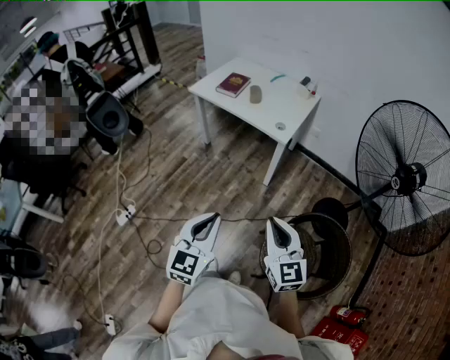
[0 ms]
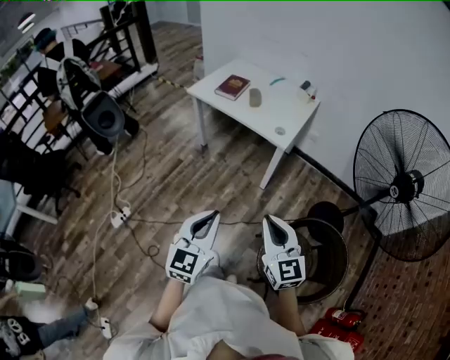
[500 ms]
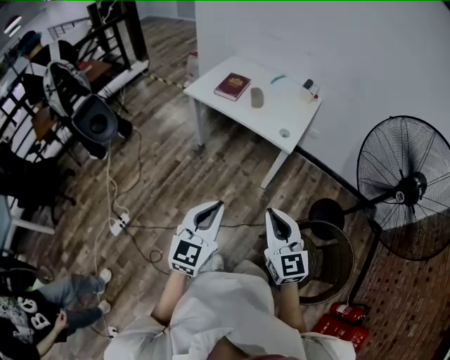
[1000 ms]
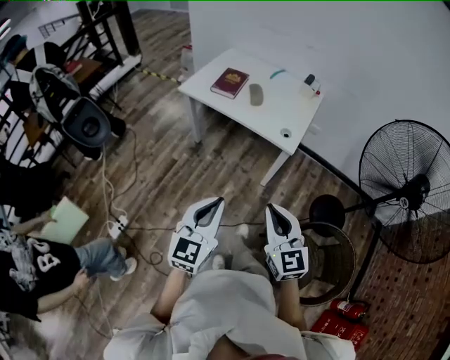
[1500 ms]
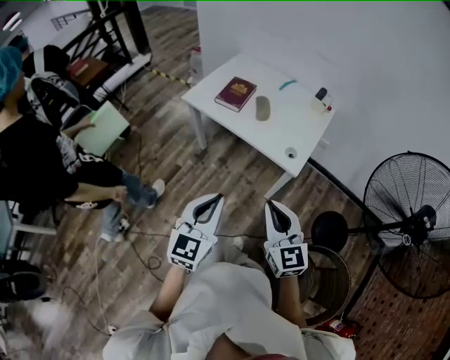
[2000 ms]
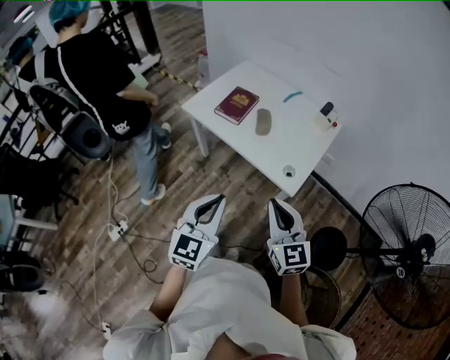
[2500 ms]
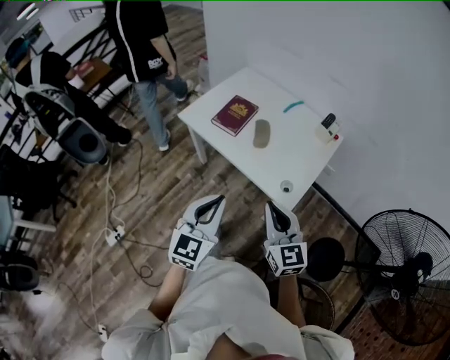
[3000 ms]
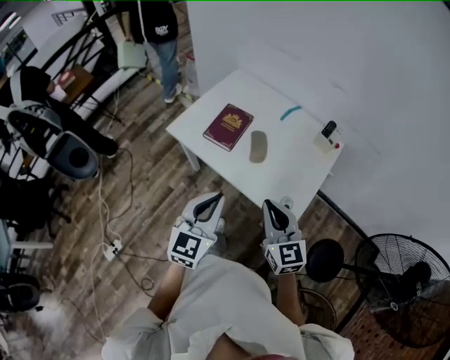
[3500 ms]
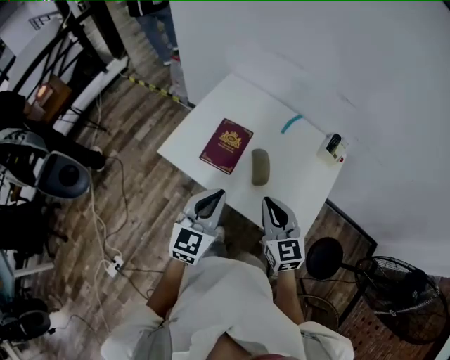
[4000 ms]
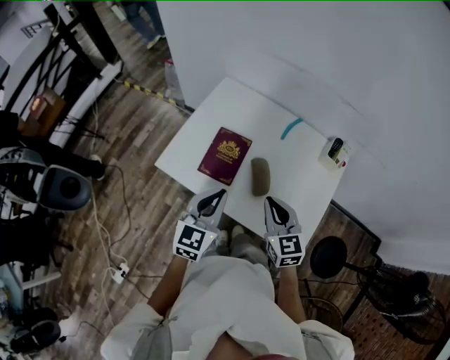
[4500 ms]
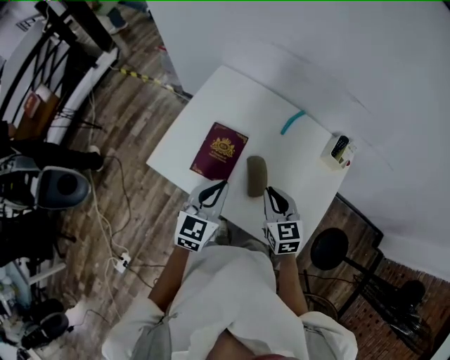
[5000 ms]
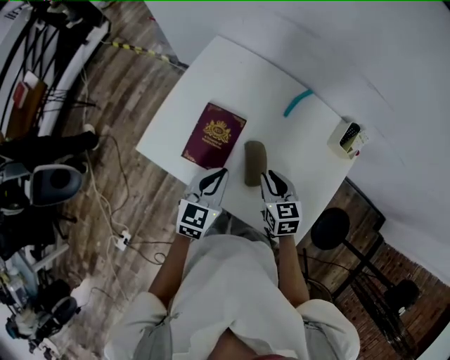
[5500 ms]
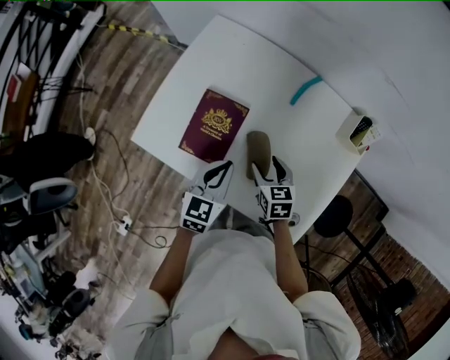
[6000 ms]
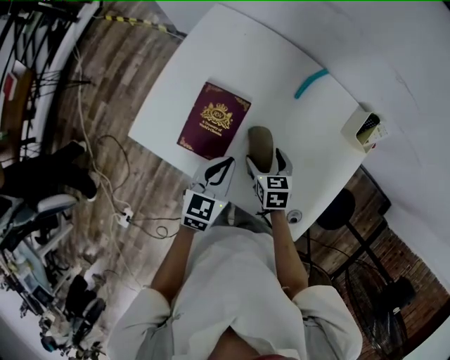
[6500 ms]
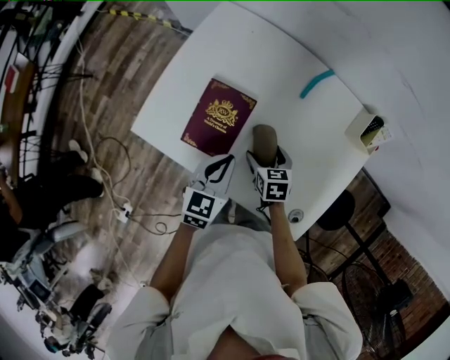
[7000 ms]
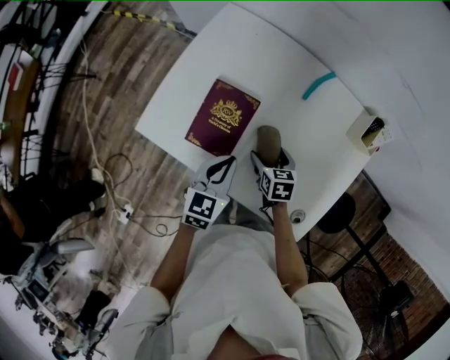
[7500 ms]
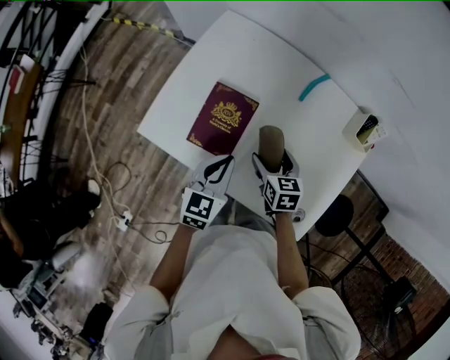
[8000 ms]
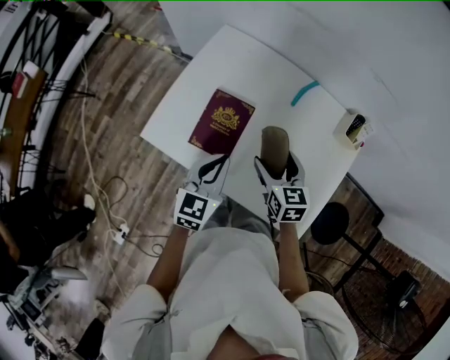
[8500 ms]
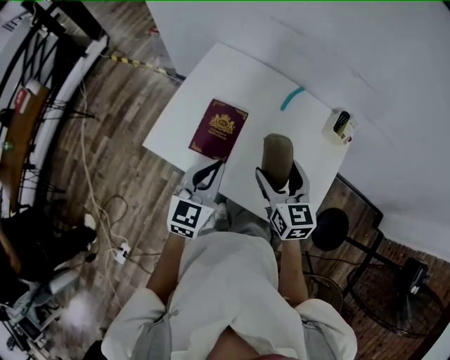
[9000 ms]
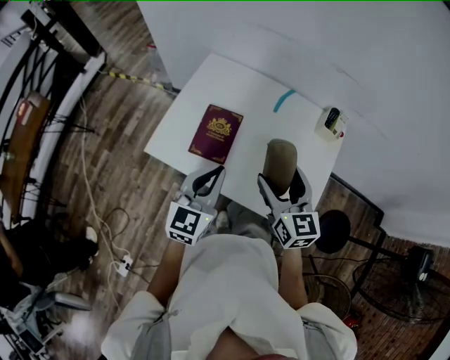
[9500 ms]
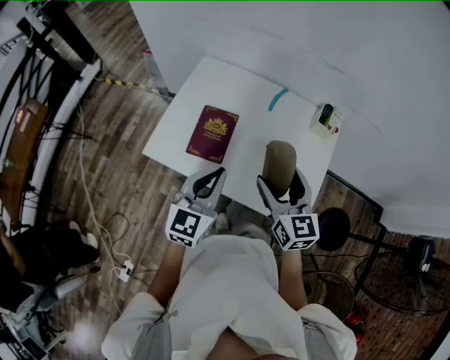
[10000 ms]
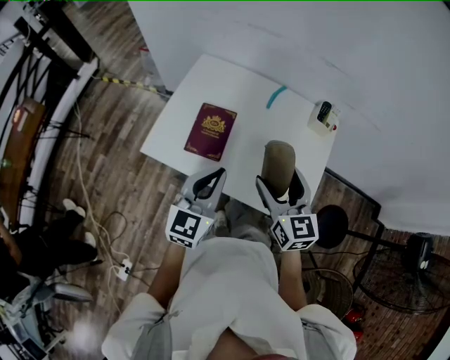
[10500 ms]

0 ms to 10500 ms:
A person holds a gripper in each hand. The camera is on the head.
0 ms to 2000 ms: The grippers both shift forward by some 30 cm.
2000 ms to 4000 ms: Both grippers travel together forward, about 40 cm.
4000 ms to 6500 ms: The grippers both shift downward and forward by roughly 30 cm. The left gripper swivels about 30 degrees, while the right gripper angles its fingers downward, by some 40 degrees, and opens.
6500 ms to 8500 ms: The left gripper is displaced upward by roughly 5 cm; the right gripper moves upward, some 15 cm.
8500 ms to 10500 ms: Both grippers move upward and backward, roughly 15 cm. The right gripper turns by roughly 20 degrees.

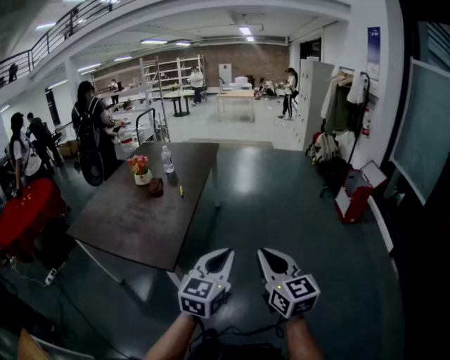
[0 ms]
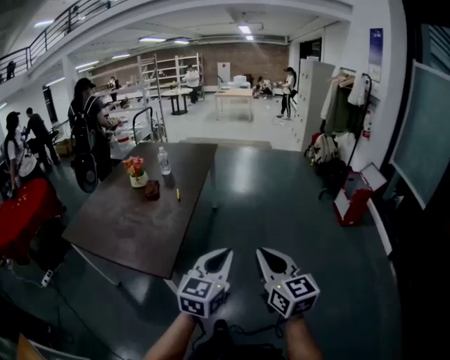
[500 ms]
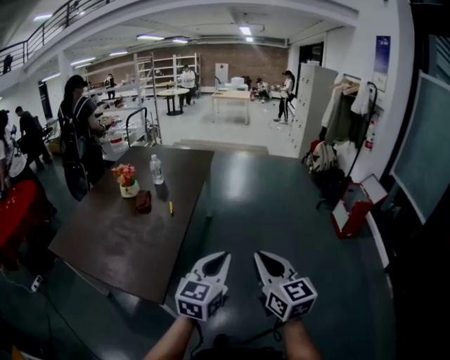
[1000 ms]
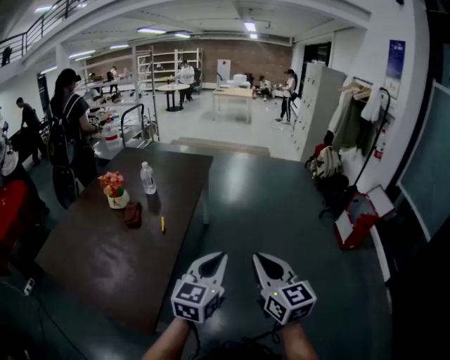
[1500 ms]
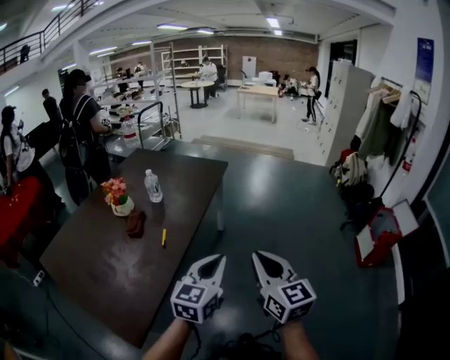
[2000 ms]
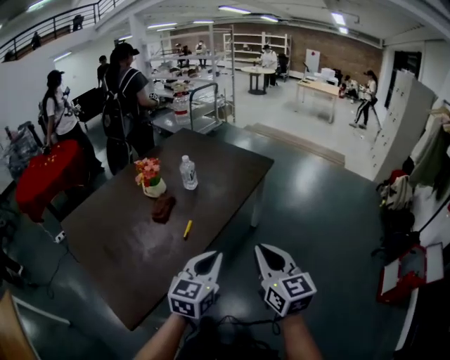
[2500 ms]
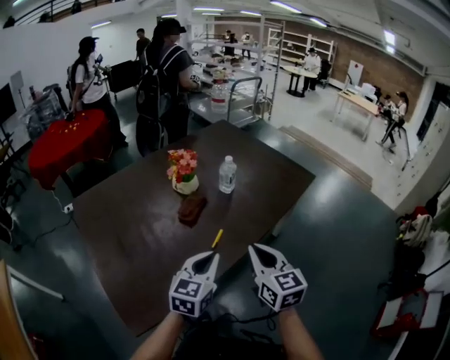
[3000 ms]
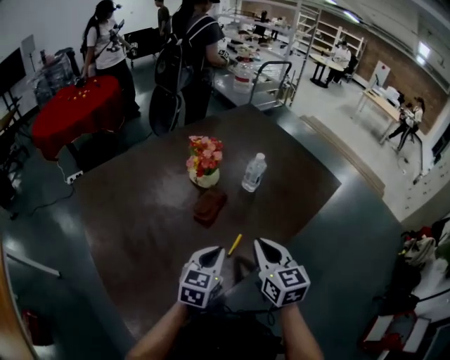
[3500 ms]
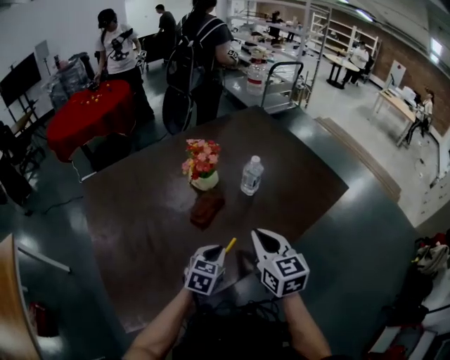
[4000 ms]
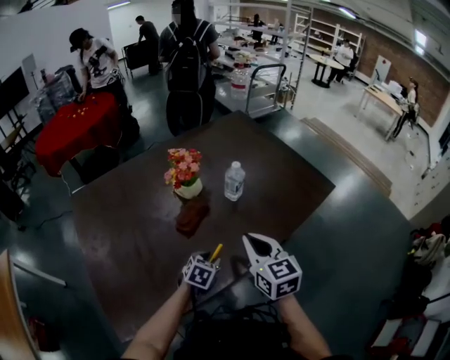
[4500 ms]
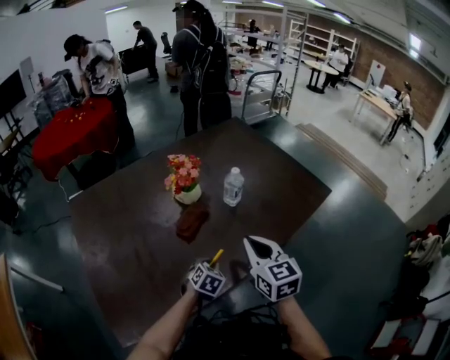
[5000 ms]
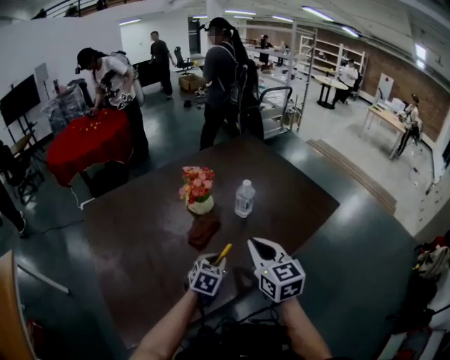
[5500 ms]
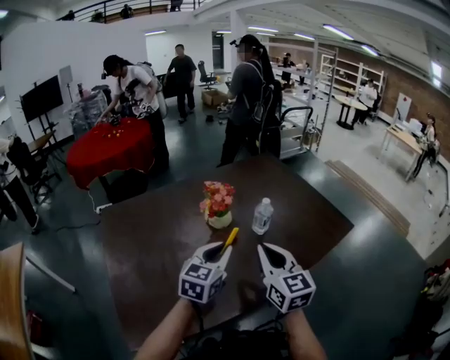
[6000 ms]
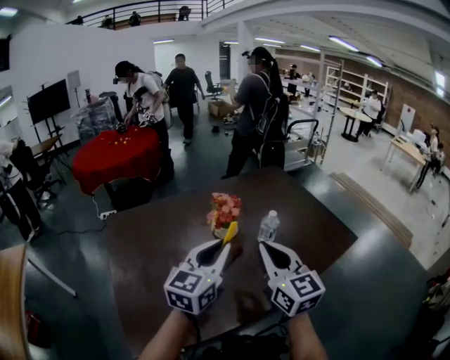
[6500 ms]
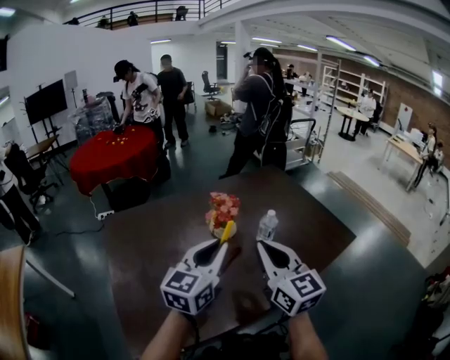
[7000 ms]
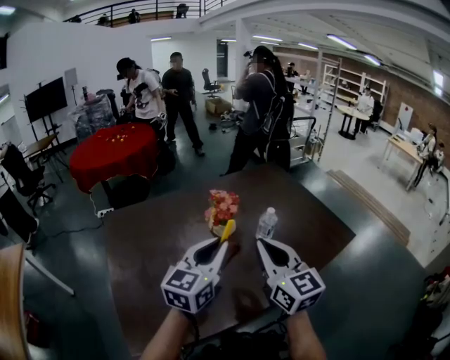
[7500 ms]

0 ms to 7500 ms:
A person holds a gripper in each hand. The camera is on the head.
0 ms to 2000 ms: Both grippers are carried forward, about 40 cm.
2000 ms to 4000 ms: The right gripper changes place by about 40 cm, and swivels about 40 degrees; the left gripper moves some 40 cm, and changes its angle by roughly 50 degrees.
4000 ms to 5500 ms: The left gripper goes downward and returns, about 10 cm each way, and opens, then closes again.
5500 ms to 7500 ms: The right gripper heads upward and to the left, covering some 10 cm. Meanwhile the left gripper moves upward, roughly 25 cm, and tilts its fingers about 40 degrees upward.

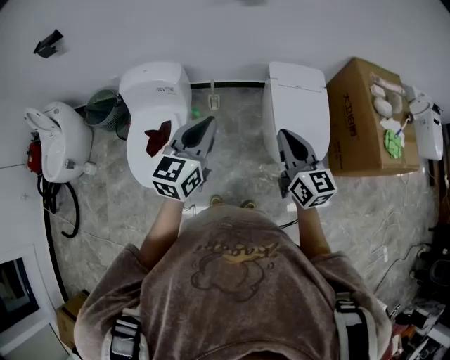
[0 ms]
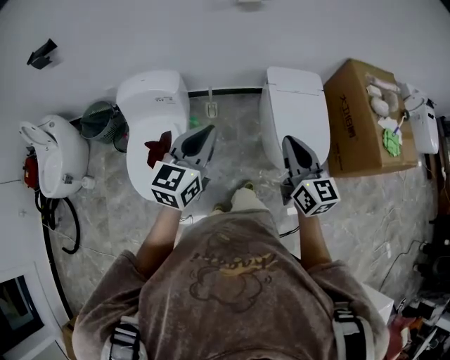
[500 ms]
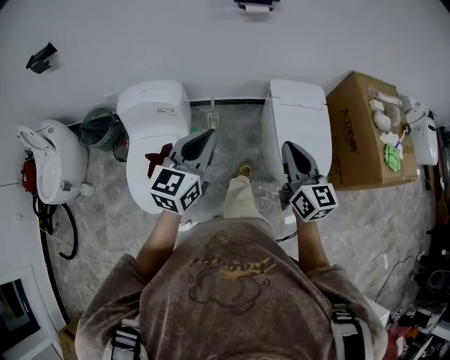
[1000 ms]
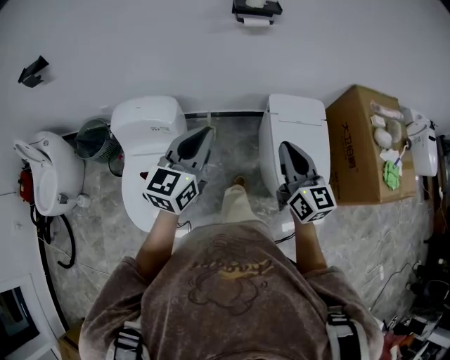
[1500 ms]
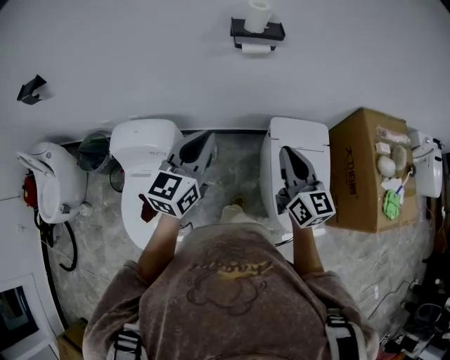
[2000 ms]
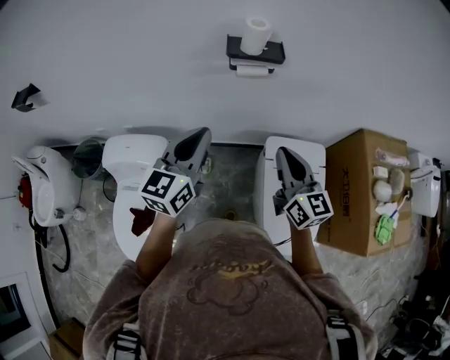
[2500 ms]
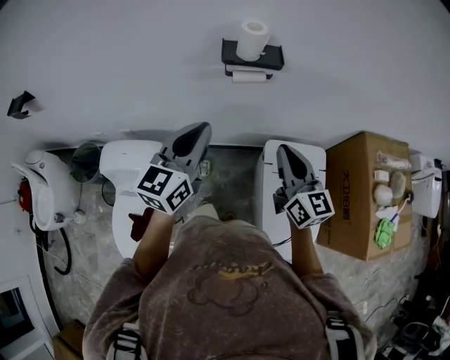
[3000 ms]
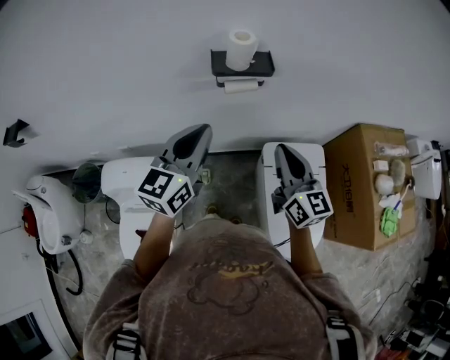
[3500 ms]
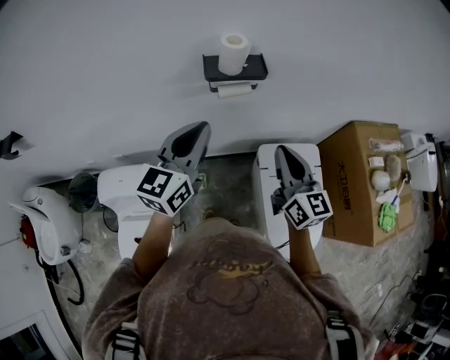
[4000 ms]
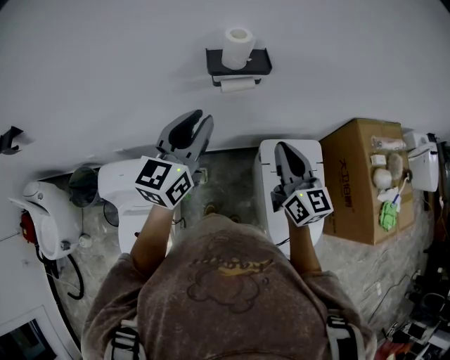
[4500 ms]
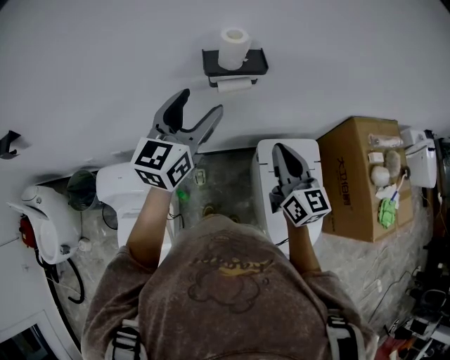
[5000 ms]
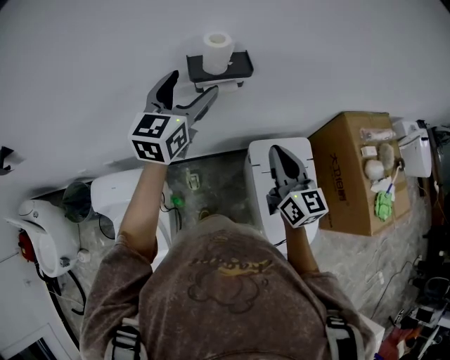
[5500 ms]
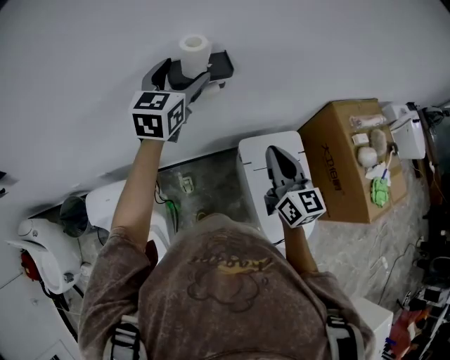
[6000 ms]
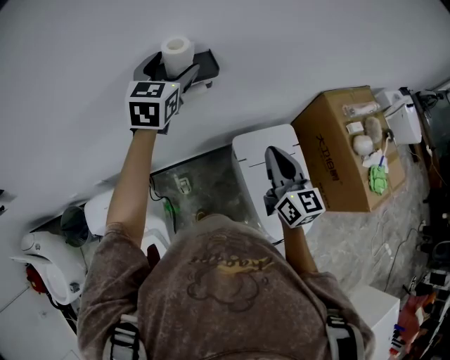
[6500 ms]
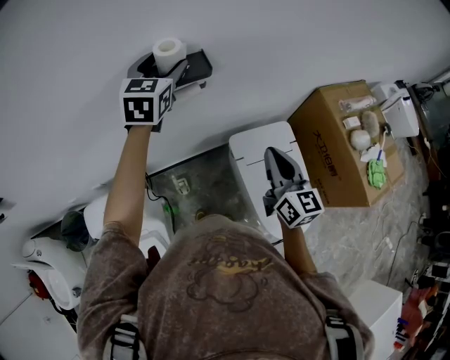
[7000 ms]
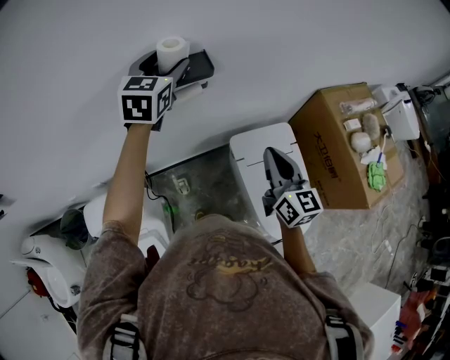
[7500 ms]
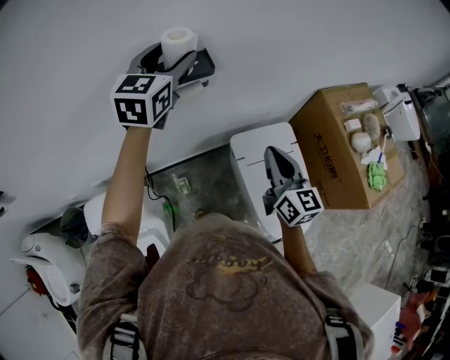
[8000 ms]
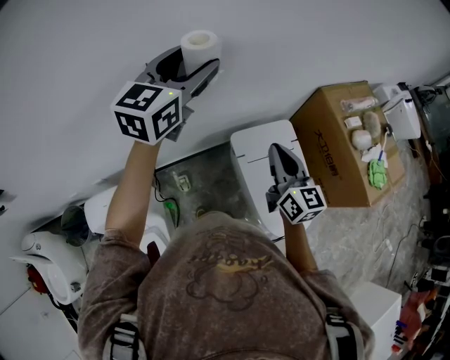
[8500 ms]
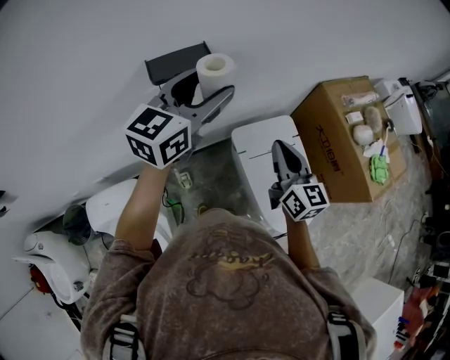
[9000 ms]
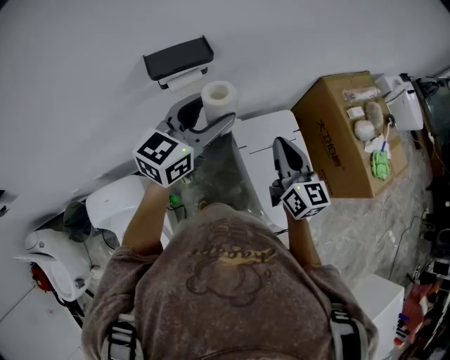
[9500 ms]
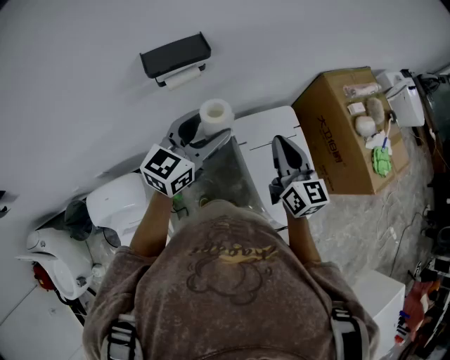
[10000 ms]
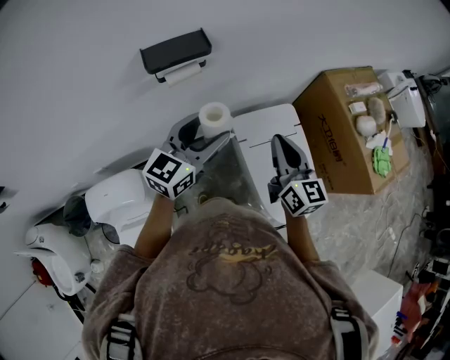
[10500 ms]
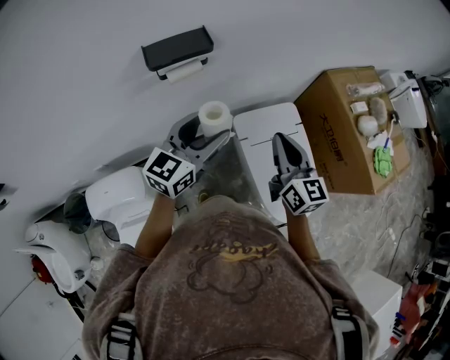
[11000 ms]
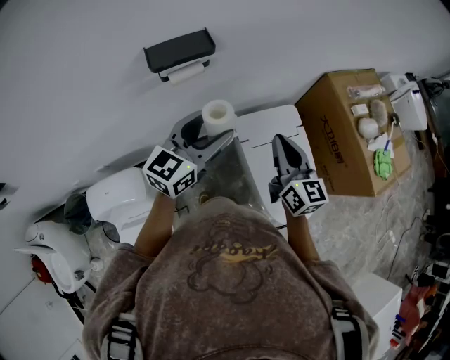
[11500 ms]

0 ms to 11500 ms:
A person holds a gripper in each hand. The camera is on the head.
0 ms to 2000 ms: Both grippers travel together forward, roughly 30 cm.
2000 ms to 4000 ms: Both grippers move forward, approximately 20 cm.
4000 ms to 6000 ms: The left gripper travels forward by roughly 15 cm, and opens up.
6000 ms to 7500 ms: There are only small adjustments of the grippers.
7500 ms to 9500 ms: The left gripper goes about 20 cm backward and to the right, and swivels roughly 30 degrees.
9500 ms to 11500 ms: The left gripper moves downward, approximately 5 cm.
